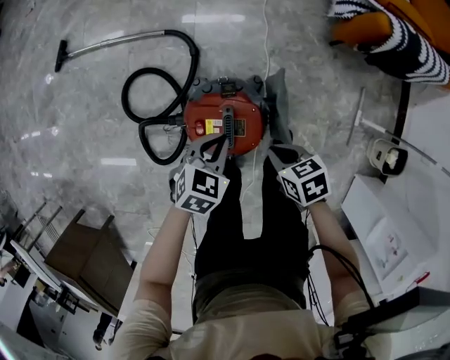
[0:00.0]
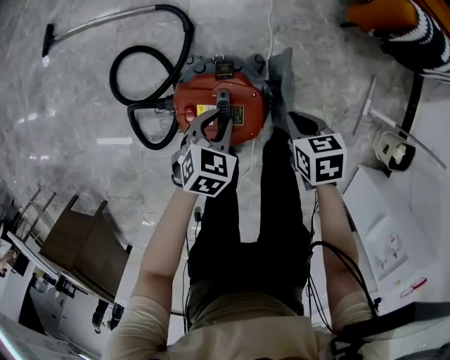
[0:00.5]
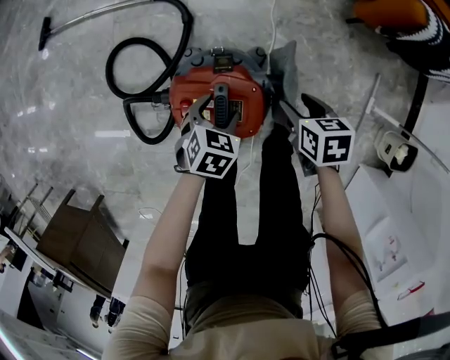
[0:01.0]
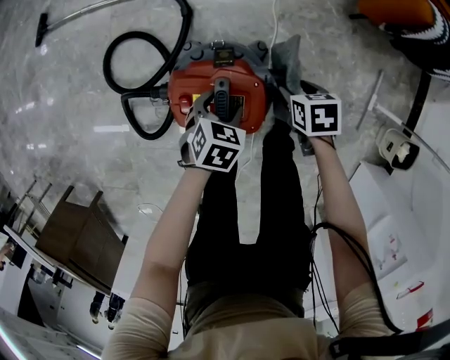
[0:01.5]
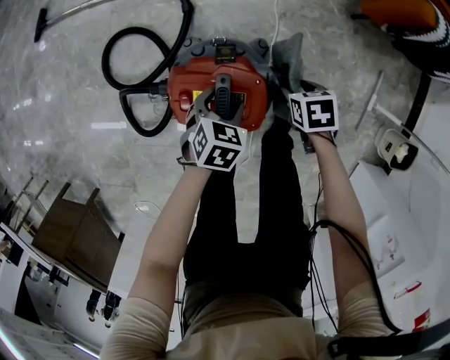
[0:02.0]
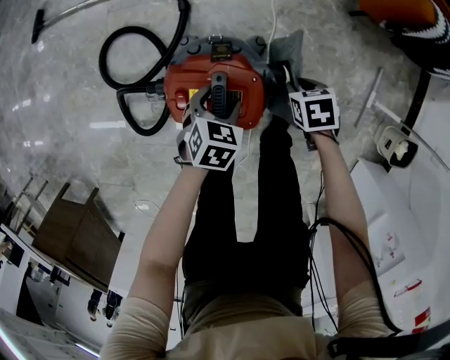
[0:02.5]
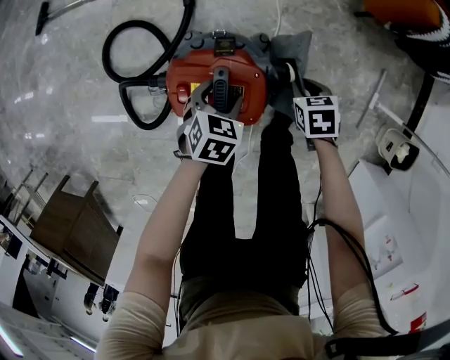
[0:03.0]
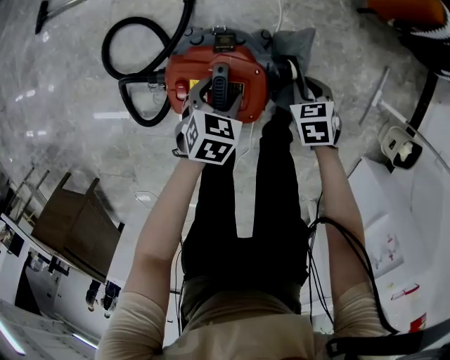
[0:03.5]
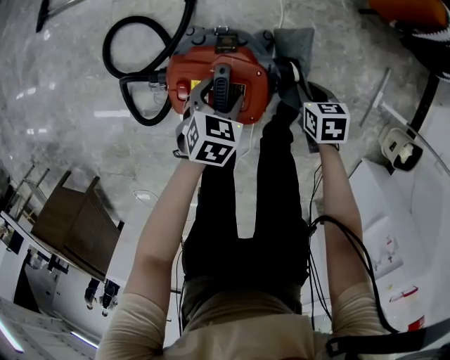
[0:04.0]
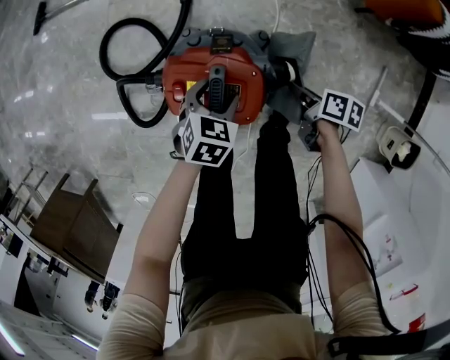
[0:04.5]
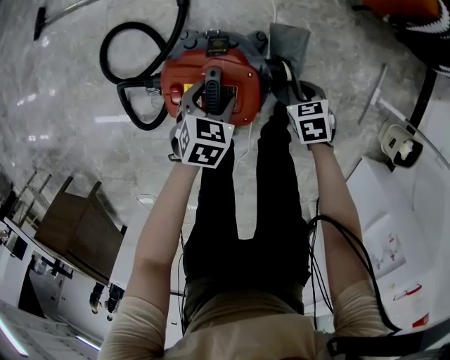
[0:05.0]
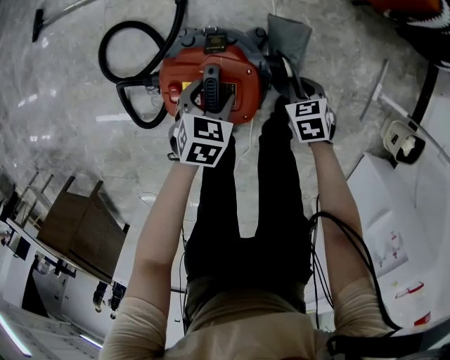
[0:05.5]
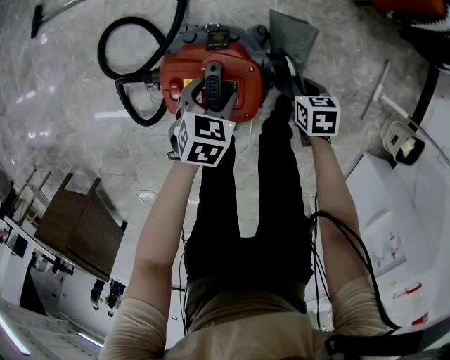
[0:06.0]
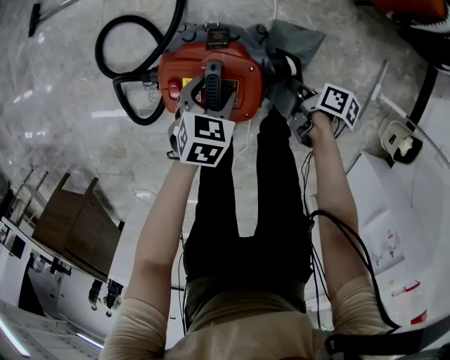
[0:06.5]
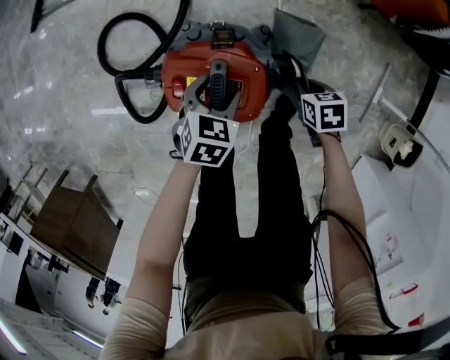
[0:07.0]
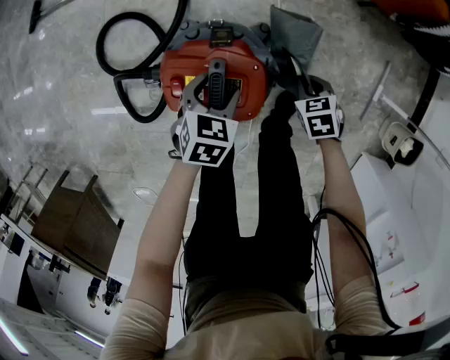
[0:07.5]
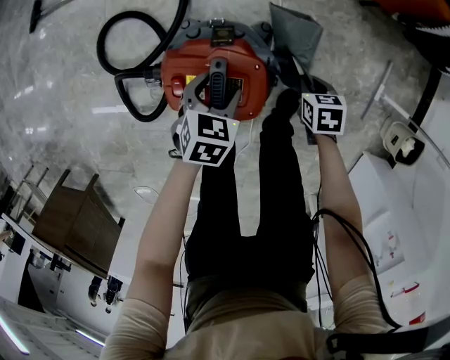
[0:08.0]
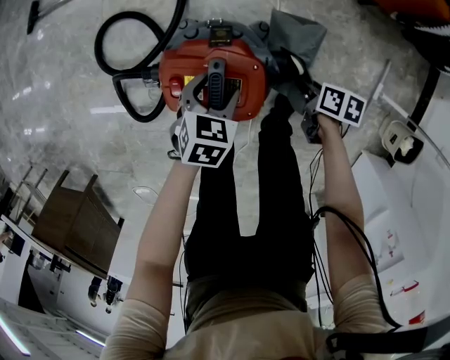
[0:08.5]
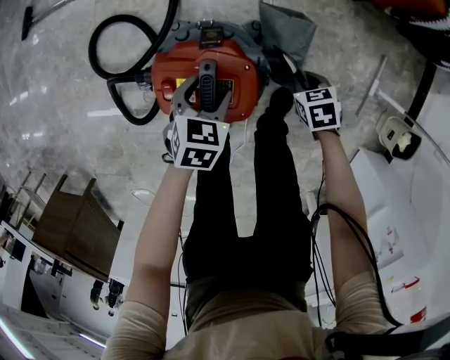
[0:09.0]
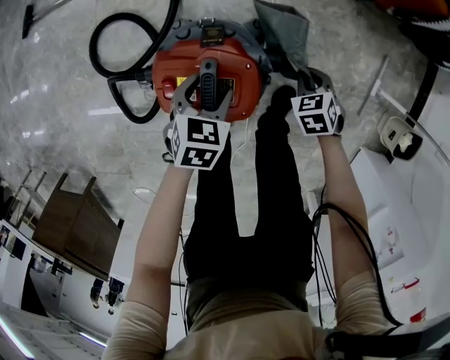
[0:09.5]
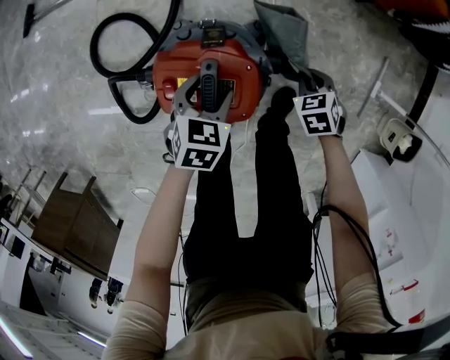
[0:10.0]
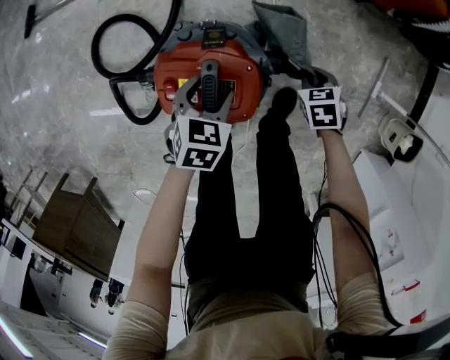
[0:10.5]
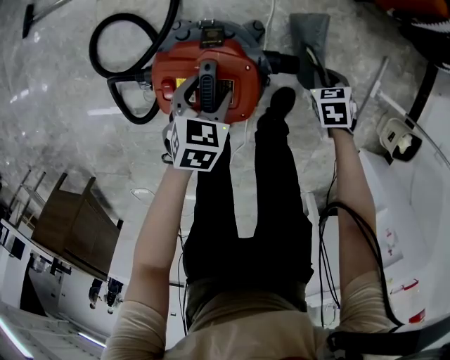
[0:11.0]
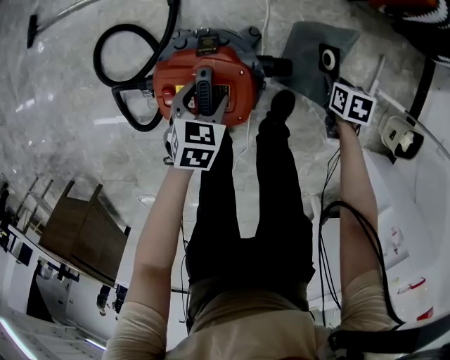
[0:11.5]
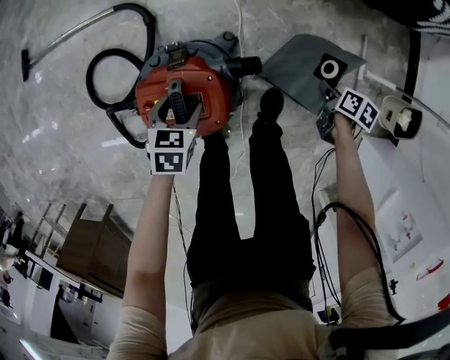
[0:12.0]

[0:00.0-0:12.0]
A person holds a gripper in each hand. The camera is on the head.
0:00.0 to 0:02.0: The left gripper shifts some 15 cm downward, and opens up. The right gripper moves downward and to the right, roughly 20 cm, and opens its fingers.
0:02.0 to 0:04.0: The right gripper closes up.
0:08.0 to 0:10.0: The right gripper swivels about 20 degrees.
0:10.0 to 0:12.0: The right gripper moves approximately 20 cm, and rotates around the line of its fingers by approximately 70 degrees, clockwise from behind.

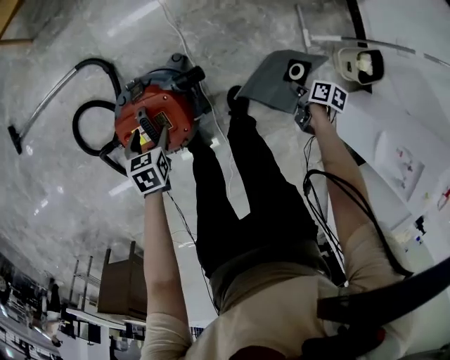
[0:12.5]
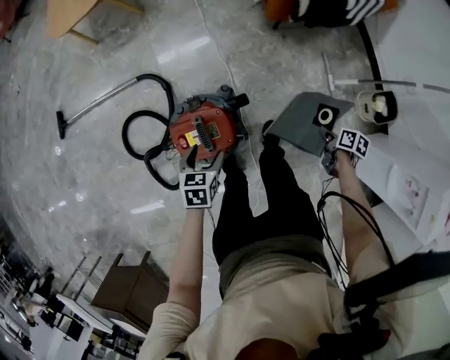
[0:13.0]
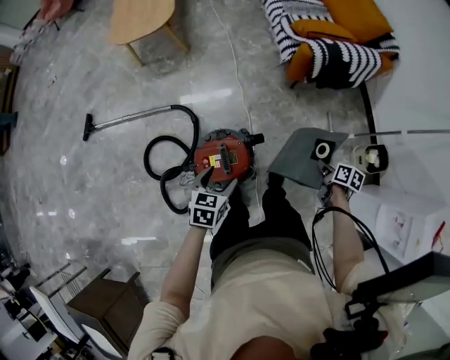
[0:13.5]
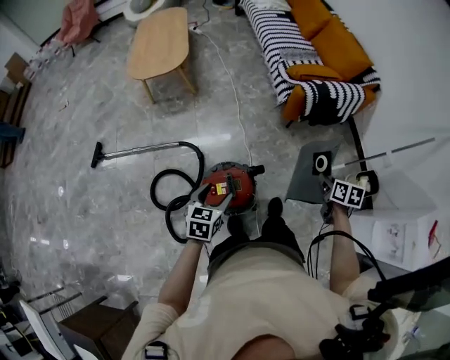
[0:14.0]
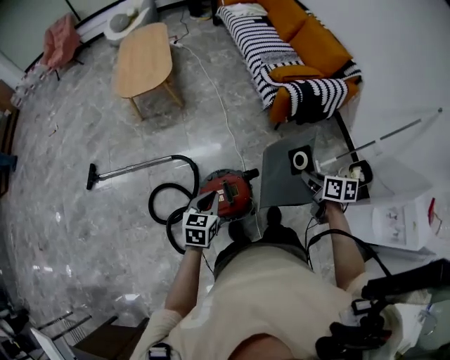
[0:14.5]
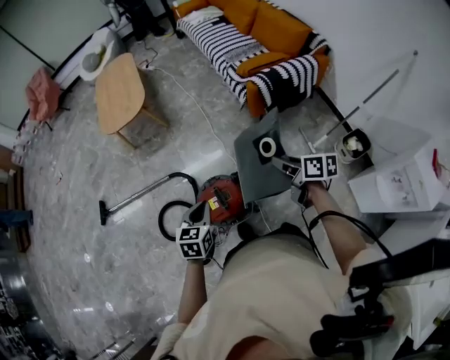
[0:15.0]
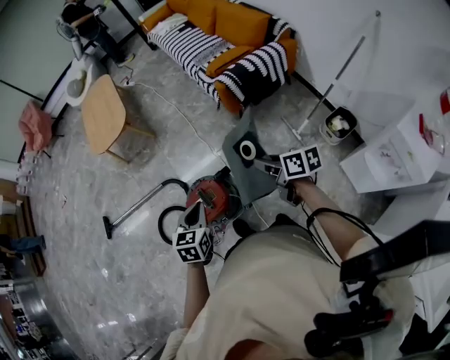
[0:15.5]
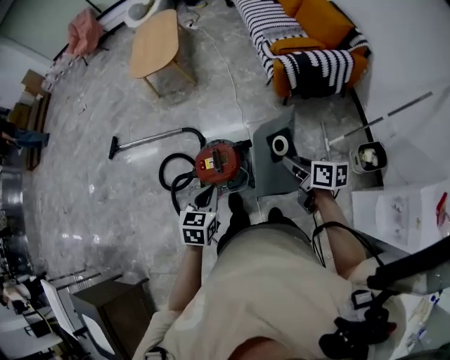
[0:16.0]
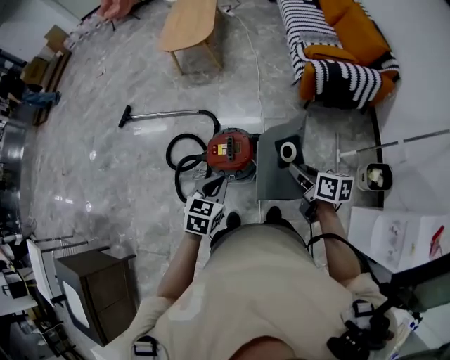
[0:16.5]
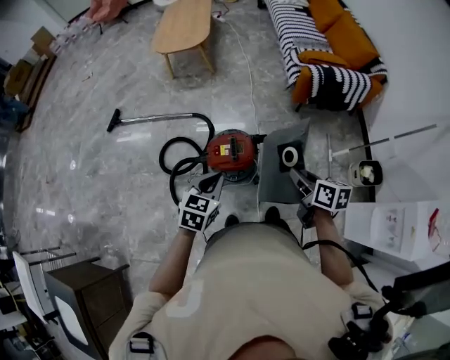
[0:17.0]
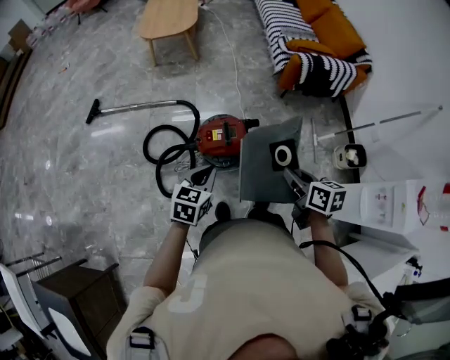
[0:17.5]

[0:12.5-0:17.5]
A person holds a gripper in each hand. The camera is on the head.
0:12.5 to 0:15.0: The grippers both shift upward by approximately 40 cm. The right gripper tips its fingers upward by roughly 40 degrees, while the left gripper changes its angle by about 30 degrees, and closes.
0:15.0 to 0:17.5: The grippers both shift backward and to the left by about 25 cm.

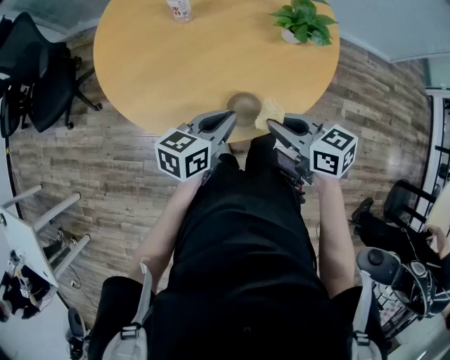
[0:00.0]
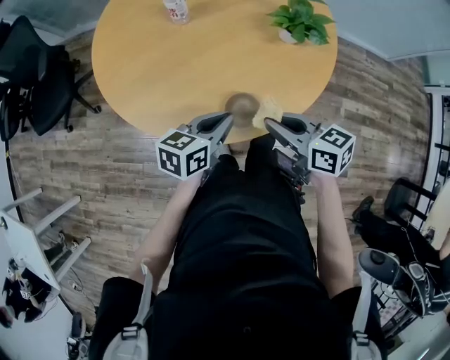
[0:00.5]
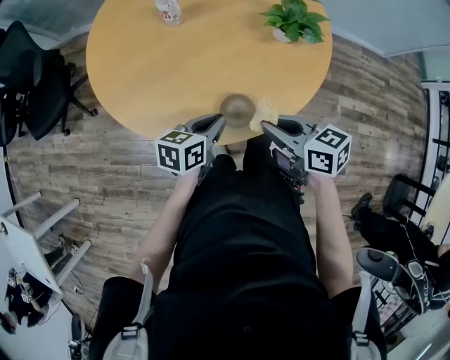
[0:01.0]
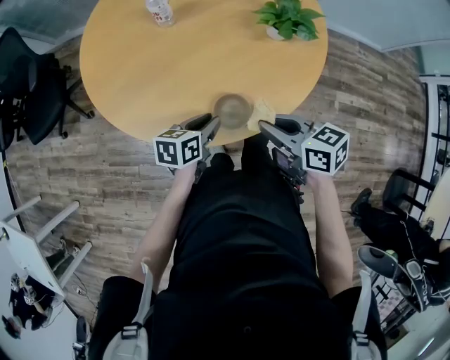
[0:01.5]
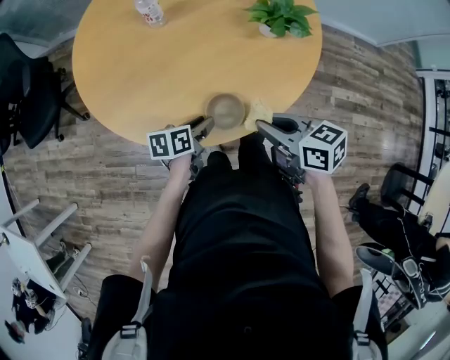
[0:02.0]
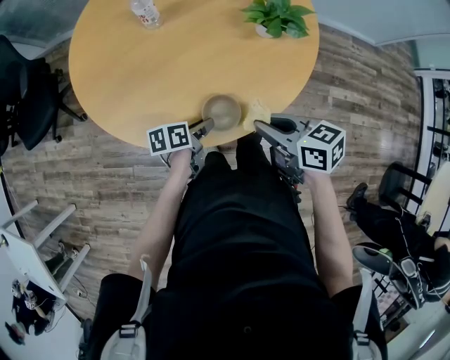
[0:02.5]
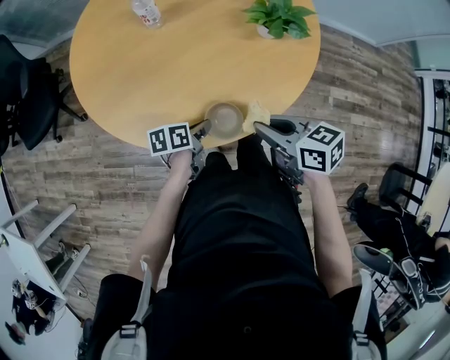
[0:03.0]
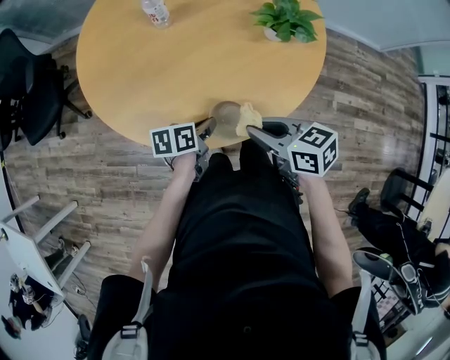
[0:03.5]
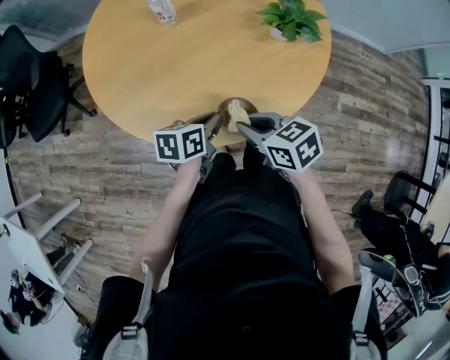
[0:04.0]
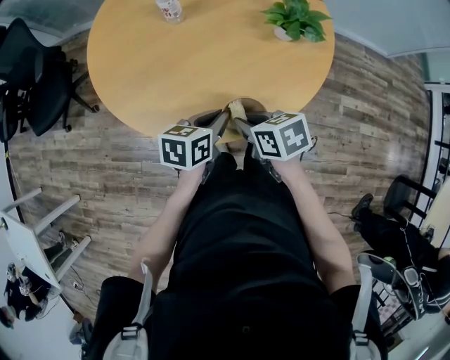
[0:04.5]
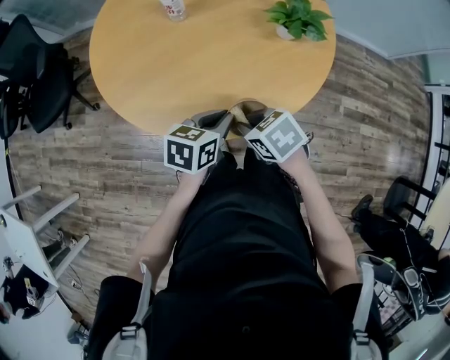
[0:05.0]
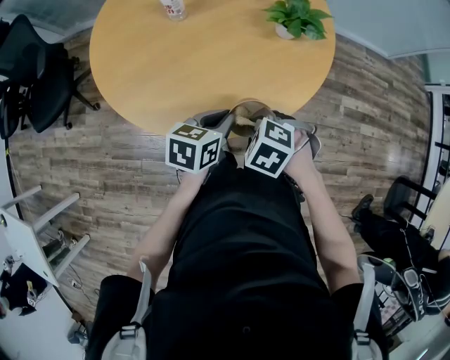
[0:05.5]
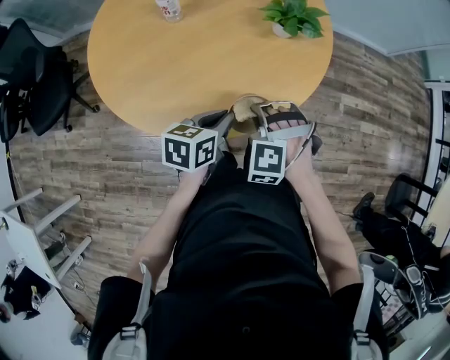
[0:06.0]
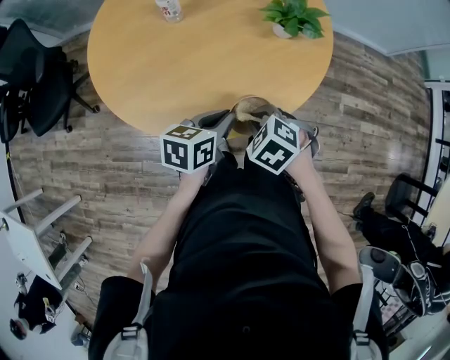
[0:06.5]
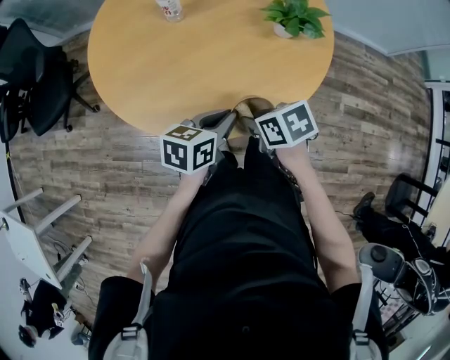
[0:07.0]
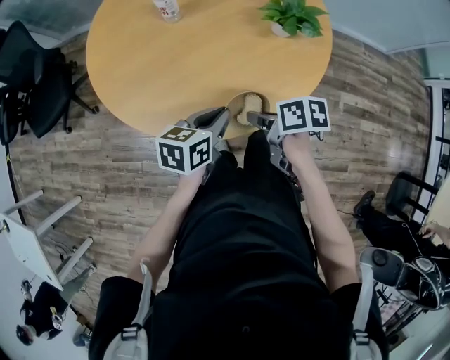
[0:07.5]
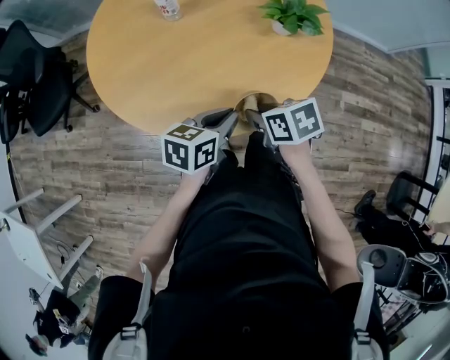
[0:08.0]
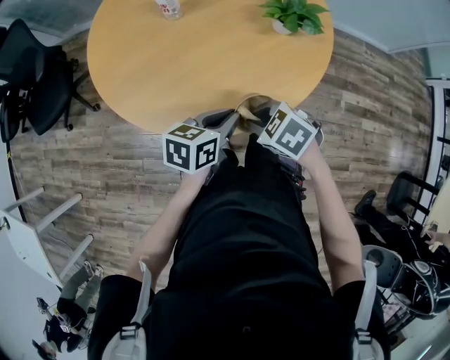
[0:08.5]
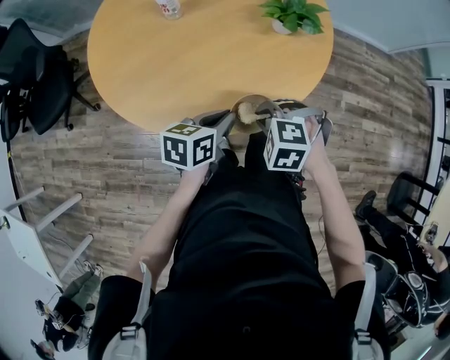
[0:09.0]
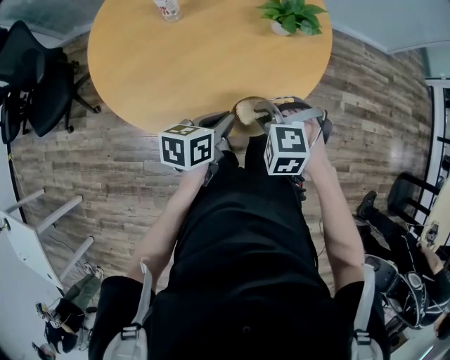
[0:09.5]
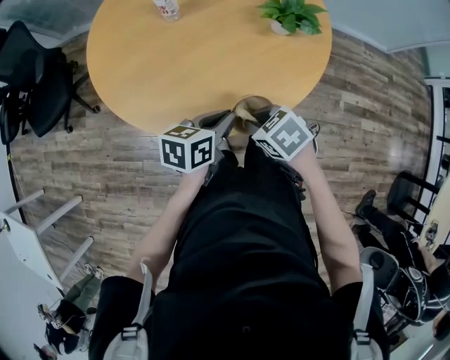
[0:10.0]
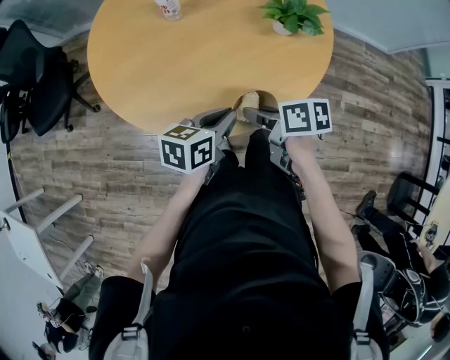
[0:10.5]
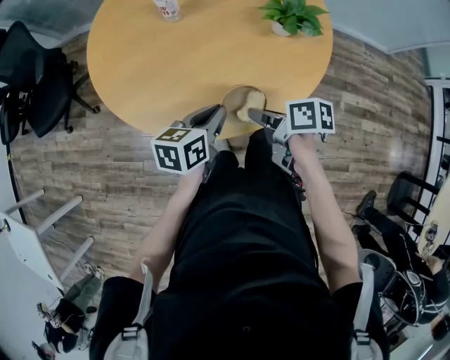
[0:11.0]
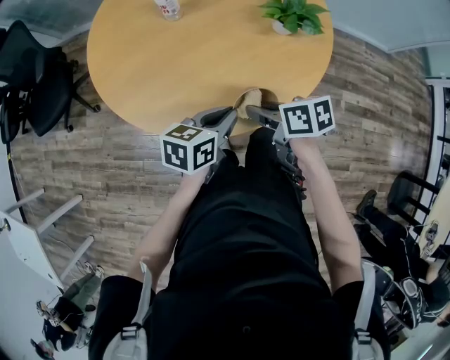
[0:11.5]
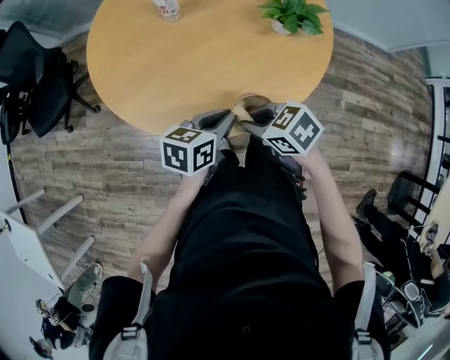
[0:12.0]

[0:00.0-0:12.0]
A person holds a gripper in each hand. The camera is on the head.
0:00.0 to 0:02.0: The left gripper heads downward, covering approximately 15 cm, turns by approximately 30 degrees, and opens up.
0:02.0 to 0:04.0: The right gripper moves to the left, approximately 5 cm; the left gripper is displaced upward by roughly 5 cm, and closes its fingers.
0:04.0 to 0:06.0: The right gripper rotates around the line of its fingers by some 70 degrees, counterclockwise from behind, while the left gripper changes place by roughly 5 cm.
0:06.0 to 0:08.0: The right gripper rolls clockwise, seen from behind, by some 80 degrees.
0:08.0 to 0:10.0: The right gripper swivels approximately 30 degrees.
